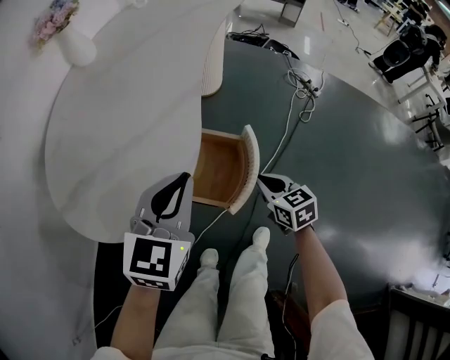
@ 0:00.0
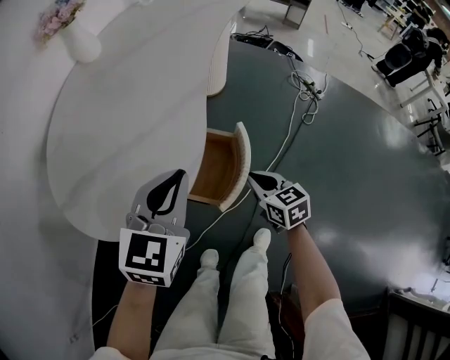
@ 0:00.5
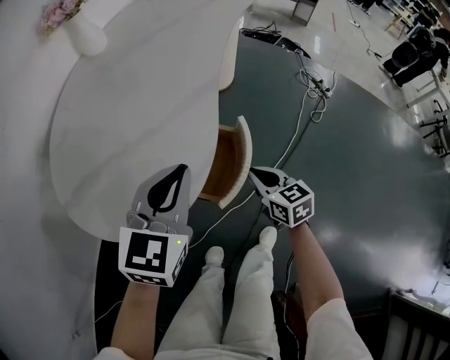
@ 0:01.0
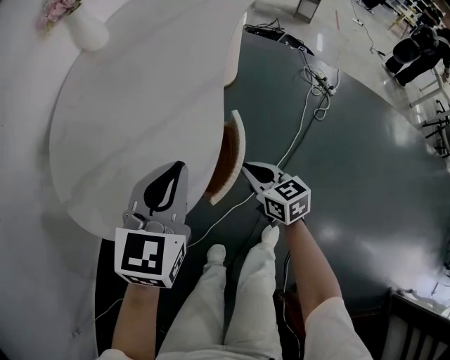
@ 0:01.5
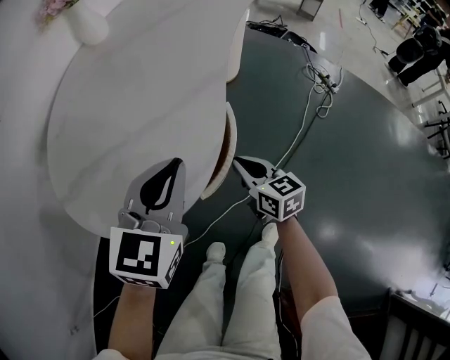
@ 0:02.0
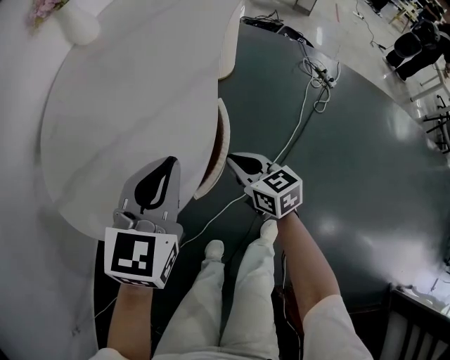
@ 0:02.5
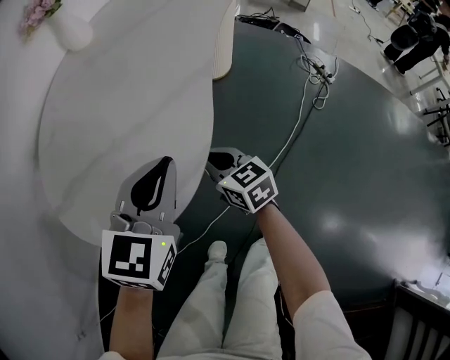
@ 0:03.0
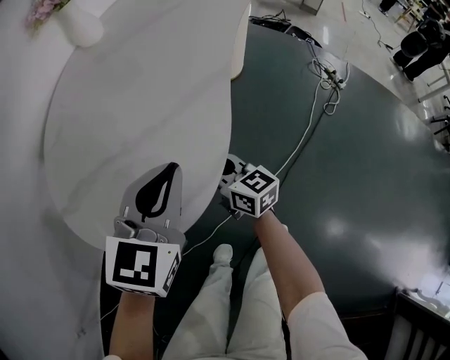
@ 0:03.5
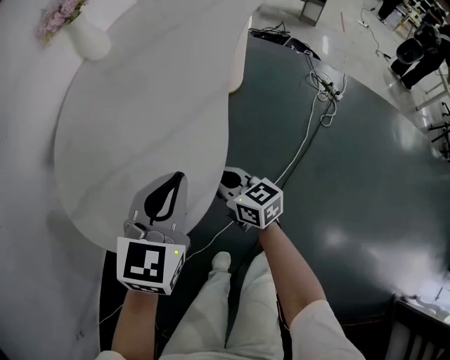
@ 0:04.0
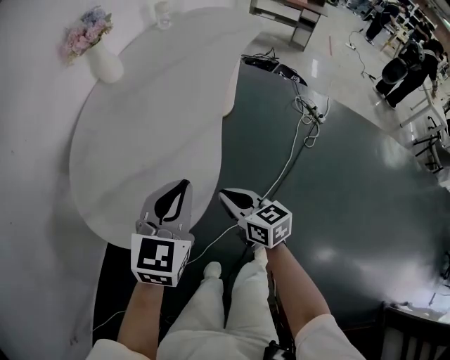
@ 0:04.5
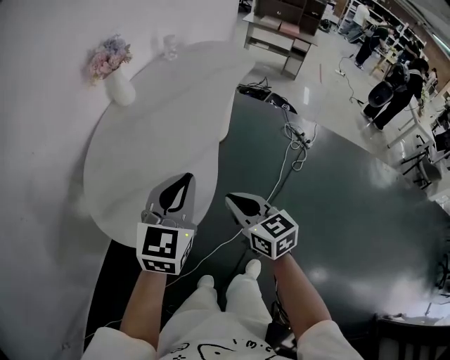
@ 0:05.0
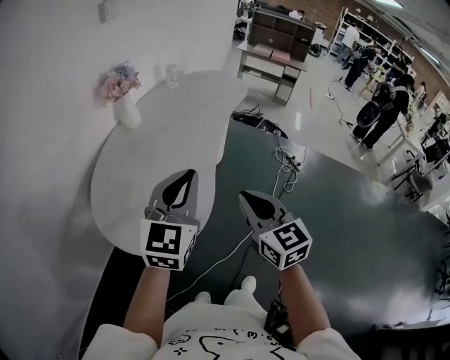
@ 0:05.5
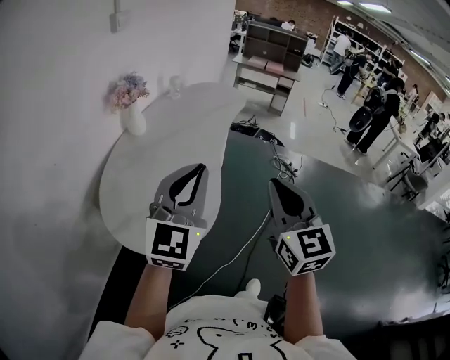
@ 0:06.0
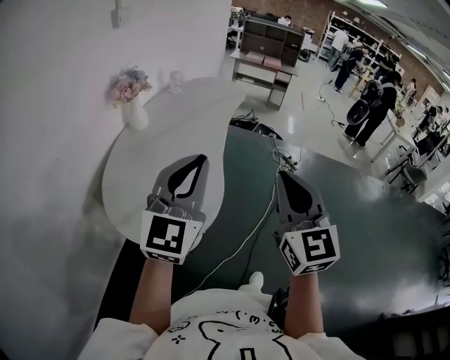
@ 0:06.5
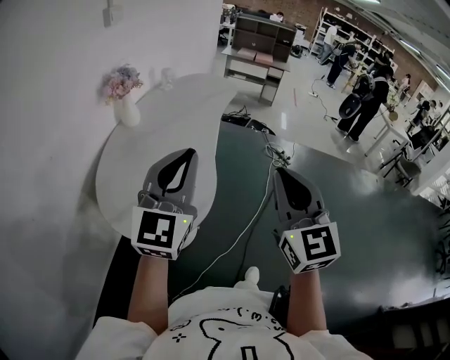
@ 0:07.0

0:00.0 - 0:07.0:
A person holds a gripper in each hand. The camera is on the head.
0:00.0 - 0:02.0: The left gripper goes about 5 cm to the left; the right gripper heads to the left and forward, covering approximately 15 cm.
0:02.0 - 0:03.5: The right gripper heads to the left and forward, covering roughly 10 cm.
0:03.5 - 0:05.0: The right gripper goes approximately 25 cm upward and backward, and swivels some 20 degrees. The left gripper heads upward, covering about 20 cm.
0:05.0 - 0:07.0: The right gripper is displaced upward and backward by about 30 cm, and changes its angle by roughly 40 degrees. Meanwhile the left gripper travels upward and backward by roughly 20 cm, and rotates some 20 degrees.

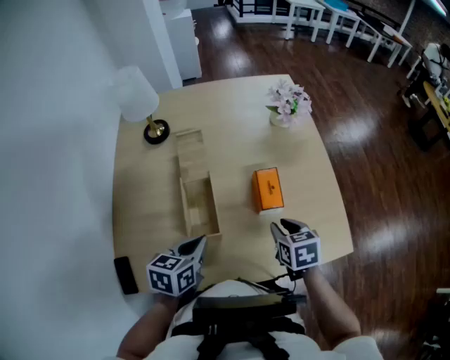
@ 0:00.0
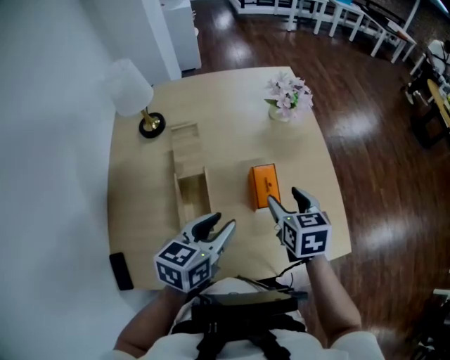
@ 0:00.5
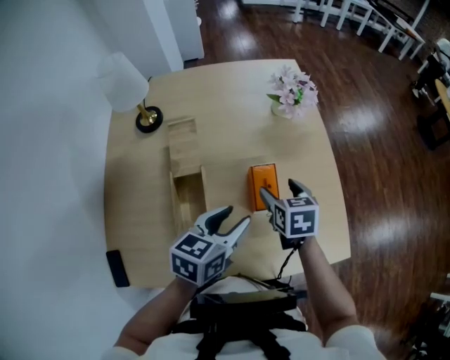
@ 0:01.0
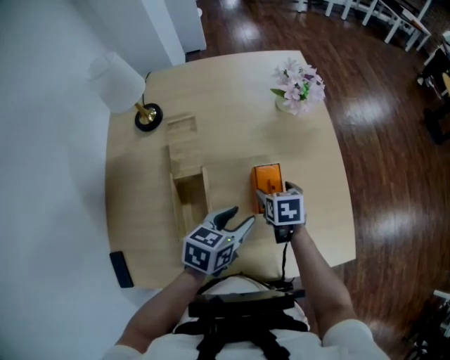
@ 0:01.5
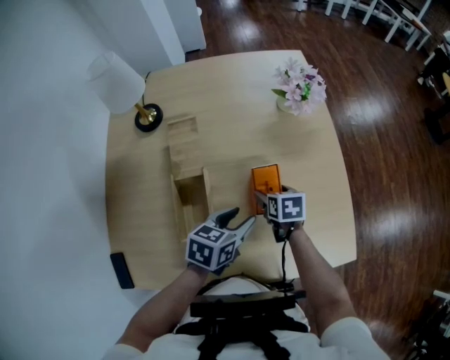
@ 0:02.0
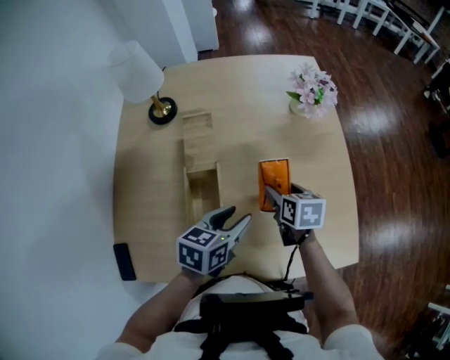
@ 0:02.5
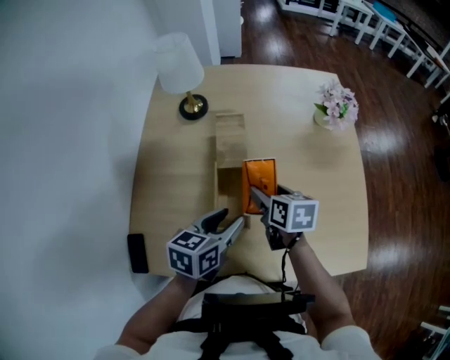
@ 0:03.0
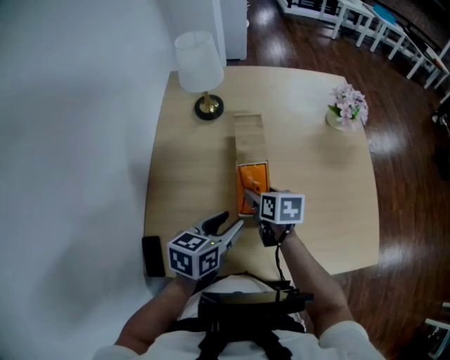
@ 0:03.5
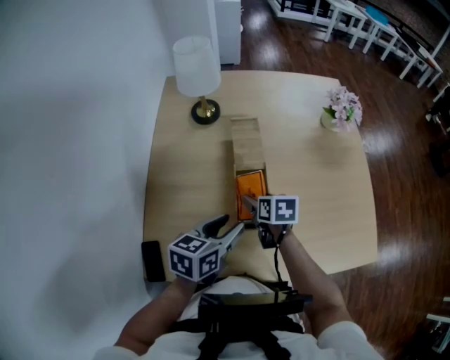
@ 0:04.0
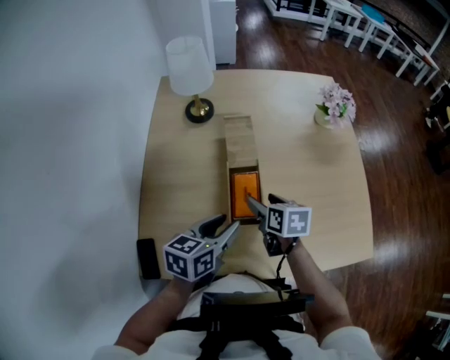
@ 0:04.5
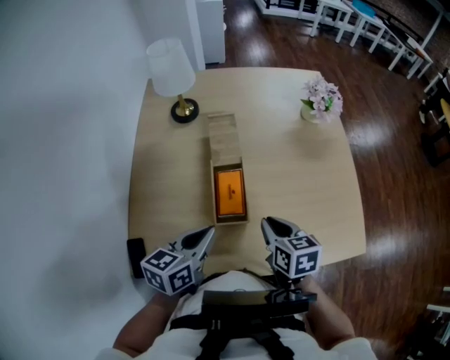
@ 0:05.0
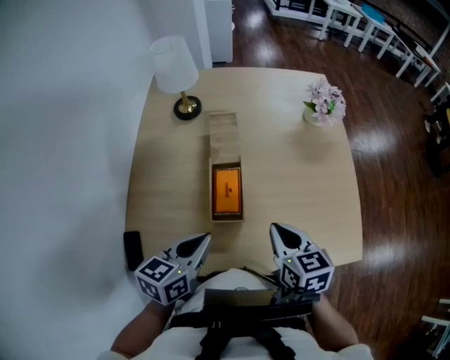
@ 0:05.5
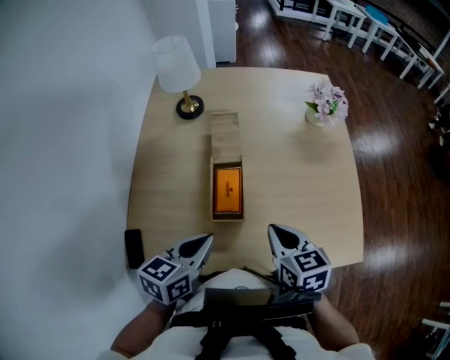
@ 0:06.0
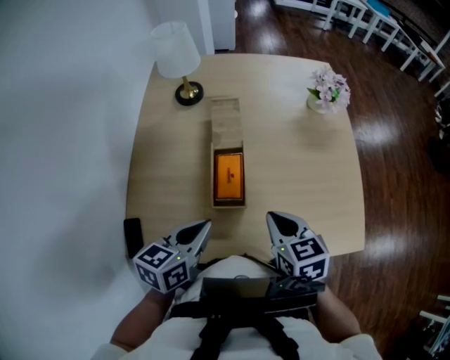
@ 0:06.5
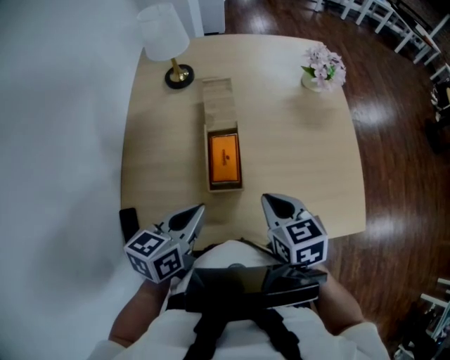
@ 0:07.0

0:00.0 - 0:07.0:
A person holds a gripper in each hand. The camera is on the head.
0:00.0 - 0:02.0: The left gripper shifts some 15 cm forward and to the right, and opens its fingers. Meanwhile the right gripper is displaced forward and downward by roughly 15 cm, and opens.
0:02.0 - 0:03.5: Both grippers travel together to the left, approximately 25 cm.
0:03.5 - 0:05.0: The left gripper moves some 5 cm, and closes up. Meanwhile the right gripper heads backward, to the right and upward, covering about 15 cm, and closes.
0:05.0 - 0:07.0: The grippers move only a little.

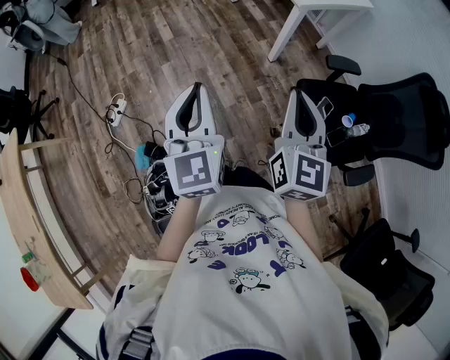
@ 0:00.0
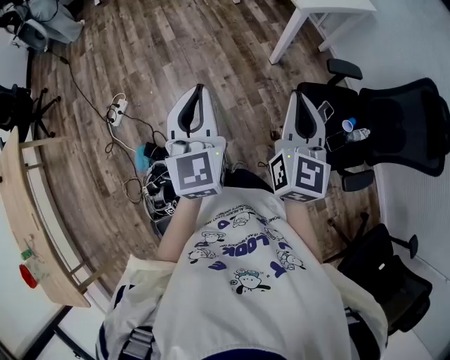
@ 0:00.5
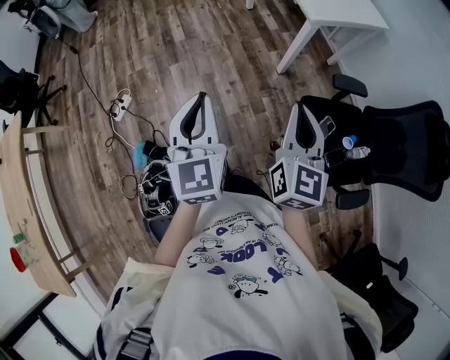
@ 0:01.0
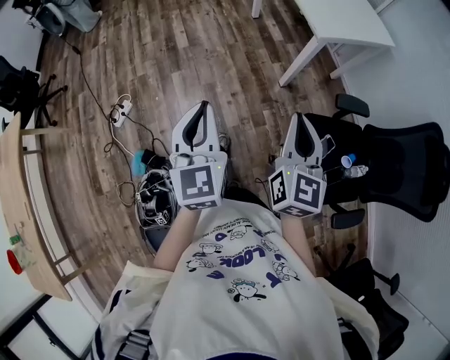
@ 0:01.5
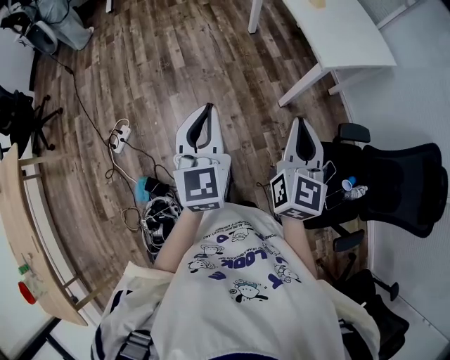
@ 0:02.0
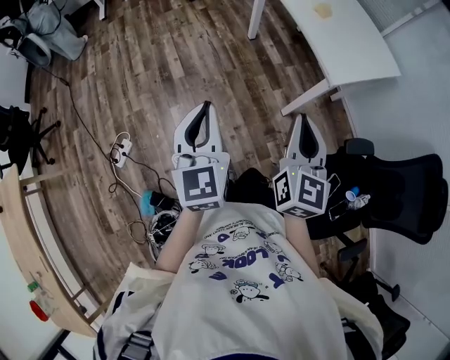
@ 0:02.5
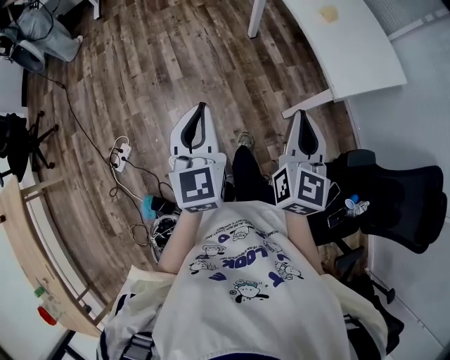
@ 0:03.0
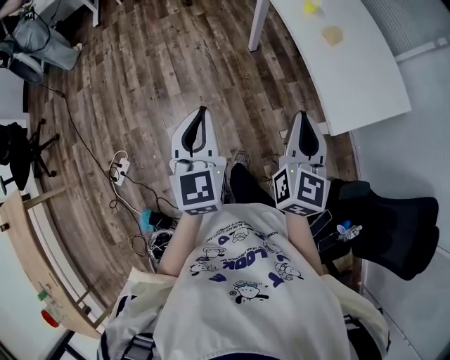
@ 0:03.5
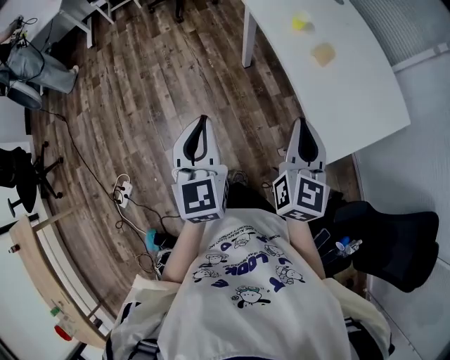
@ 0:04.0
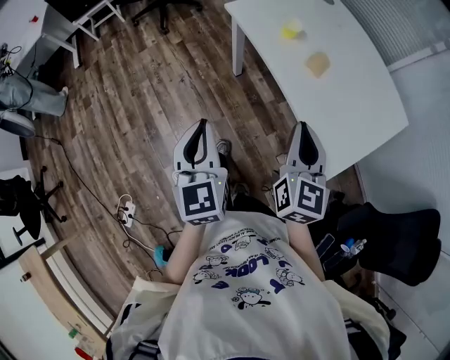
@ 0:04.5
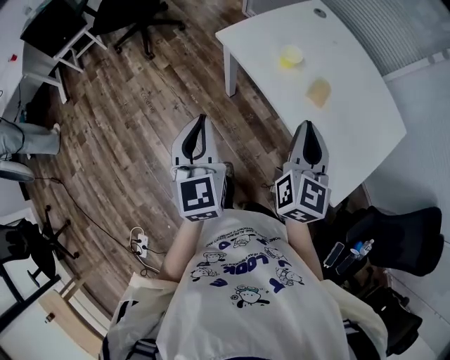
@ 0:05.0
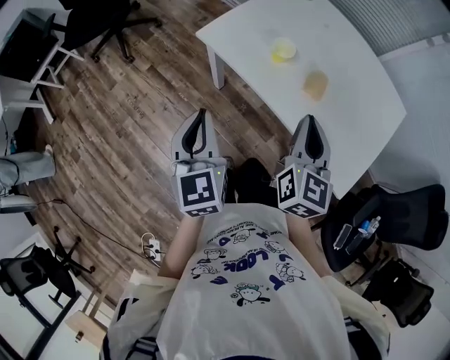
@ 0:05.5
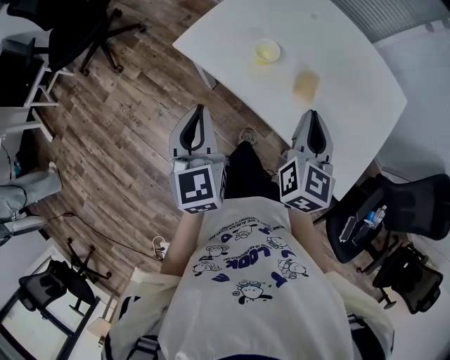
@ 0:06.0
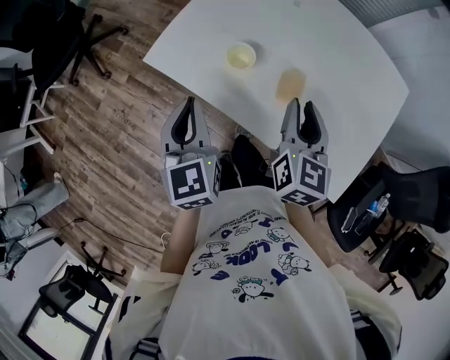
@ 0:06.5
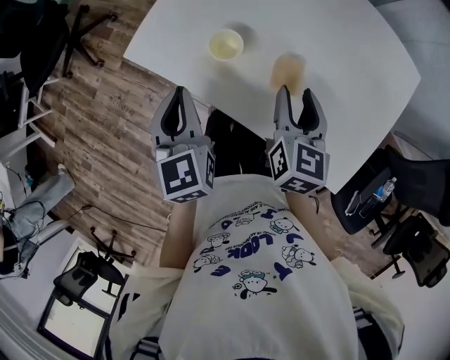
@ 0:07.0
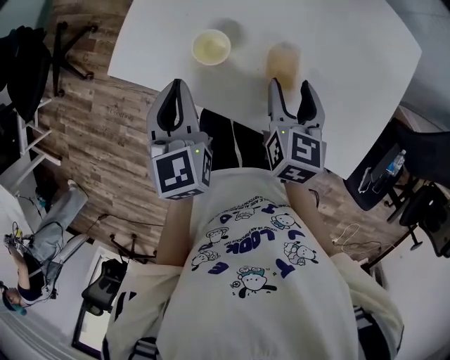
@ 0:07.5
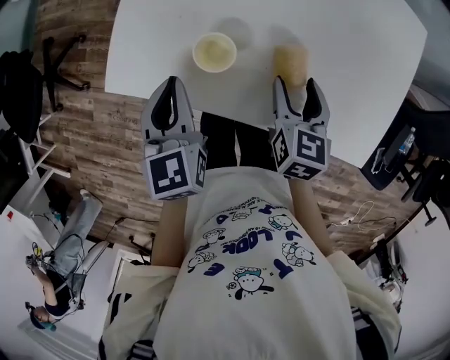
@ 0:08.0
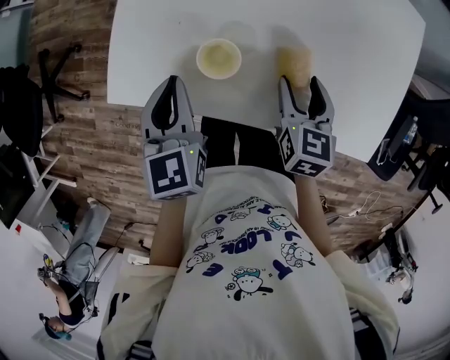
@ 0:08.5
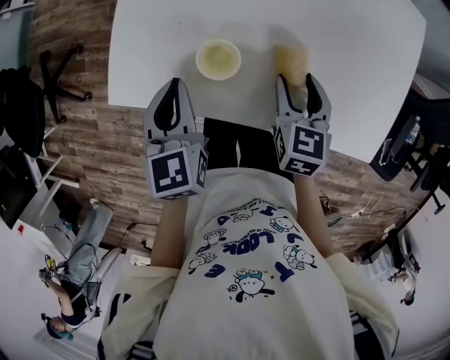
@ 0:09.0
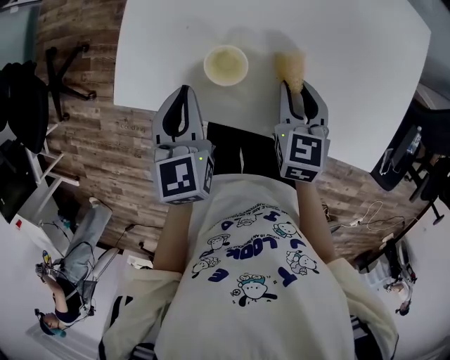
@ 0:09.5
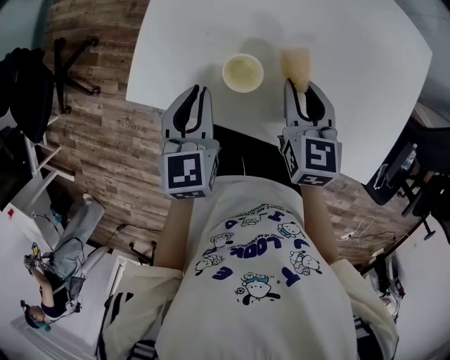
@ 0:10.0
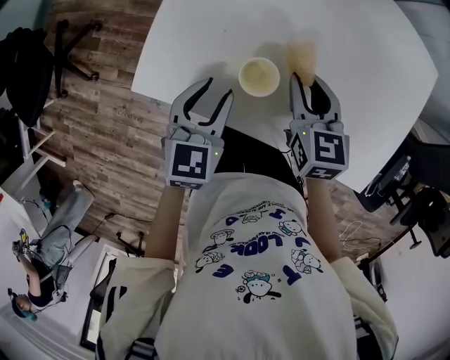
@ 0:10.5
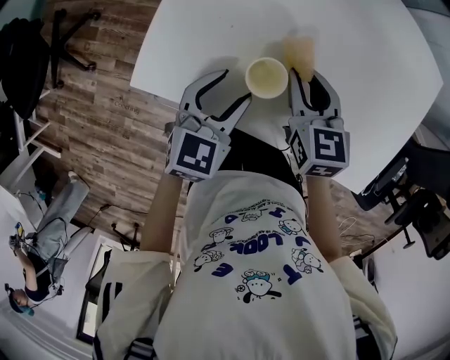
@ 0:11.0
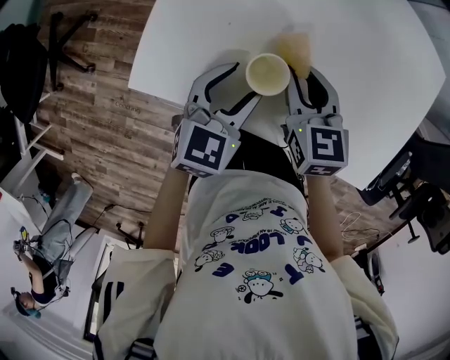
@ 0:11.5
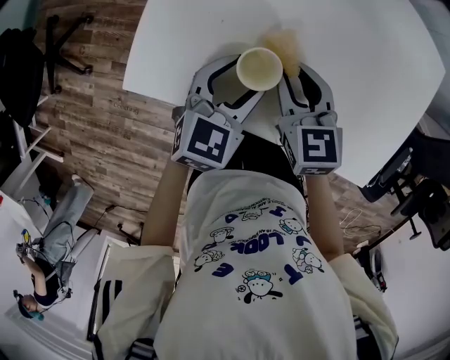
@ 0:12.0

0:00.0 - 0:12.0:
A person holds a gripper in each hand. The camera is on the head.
0:00.0 - 0:02.0: The grippers both shift forward by some 20 cm.
0:02.0 - 0:04.0: Both grippers travel together forward, some 40 cm.
0:04.0 - 0:06.0: The left gripper shifts by approximately 35 cm, and rotates about 30 degrees; the right gripper changes place by approximately 25 cm, and swivels about 40 degrees.
0:06.0 - 0:08.0: The right gripper moves downward and forward, approximately 15 cm, turns by approximately 30 degrees, and opens. Meanwhile the left gripper heads forward and downward, covering approximately 20 cm, and changes its angle by about 30 degrees.
0:08.0 - 0:10.0: The right gripper shifts by some 5 cm, and closes its fingers.
0:10.0 - 0:12.0: The left gripper is displaced to the right by approximately 5 cm, changes its angle by about 30 degrees, and opens its fingers; the right gripper moves to the left, about 5 cm.
